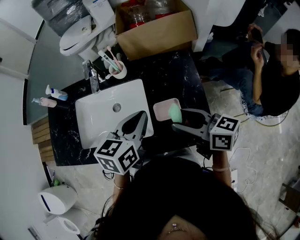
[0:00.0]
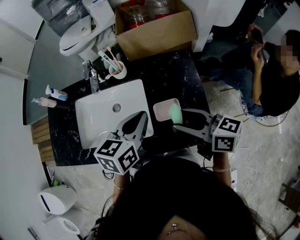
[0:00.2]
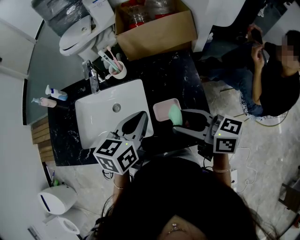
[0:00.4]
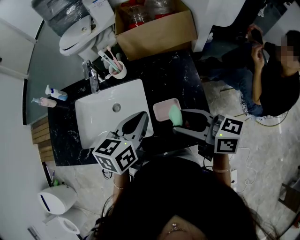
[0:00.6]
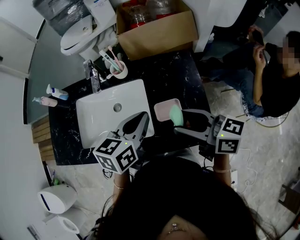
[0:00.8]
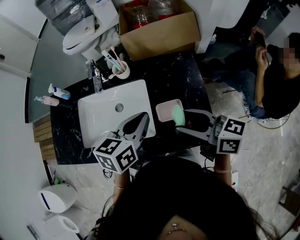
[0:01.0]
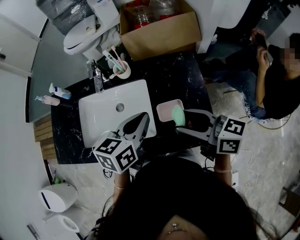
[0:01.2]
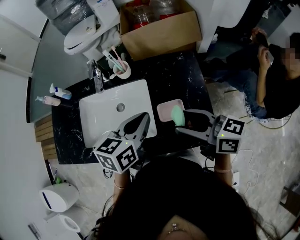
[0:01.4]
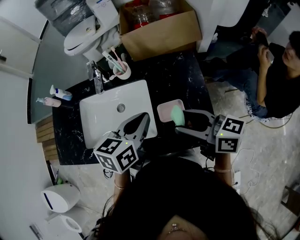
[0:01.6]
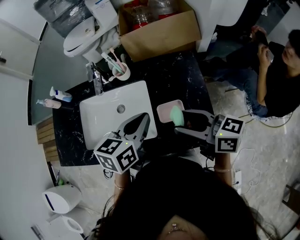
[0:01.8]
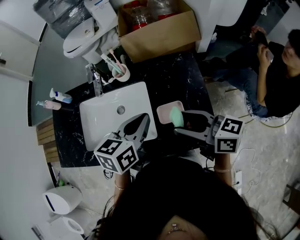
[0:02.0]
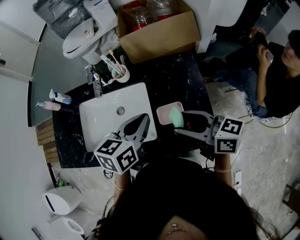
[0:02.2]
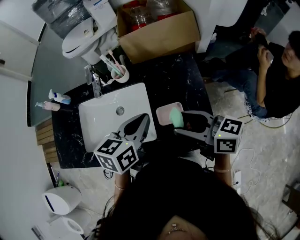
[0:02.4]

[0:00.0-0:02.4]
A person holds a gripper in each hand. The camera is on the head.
0:00.0 to 0:02.4: The grippers move only a little.

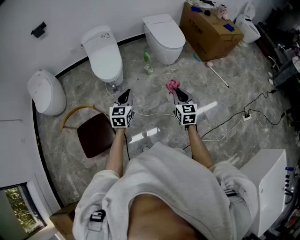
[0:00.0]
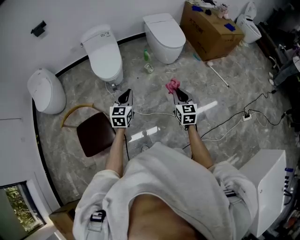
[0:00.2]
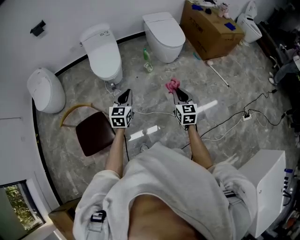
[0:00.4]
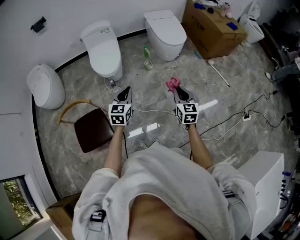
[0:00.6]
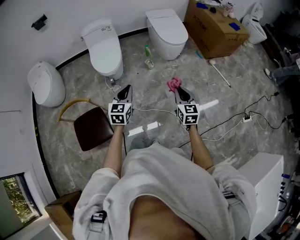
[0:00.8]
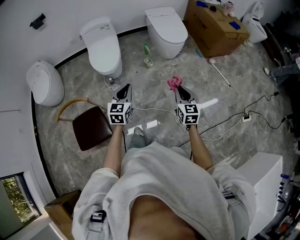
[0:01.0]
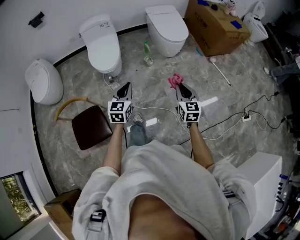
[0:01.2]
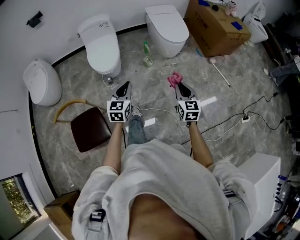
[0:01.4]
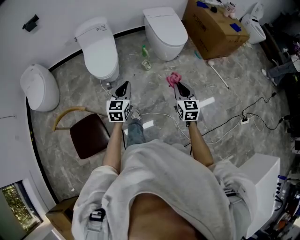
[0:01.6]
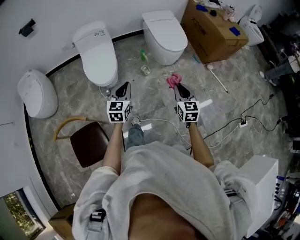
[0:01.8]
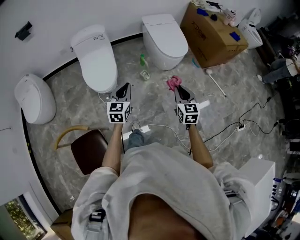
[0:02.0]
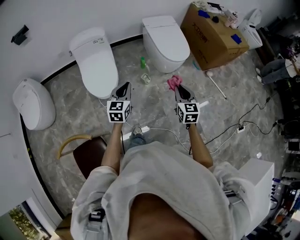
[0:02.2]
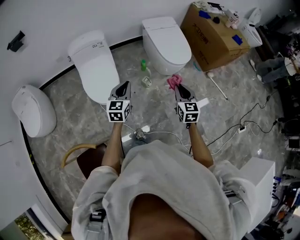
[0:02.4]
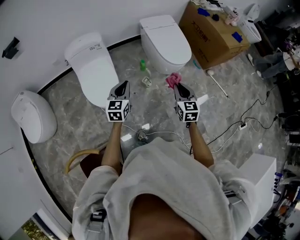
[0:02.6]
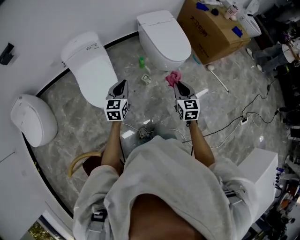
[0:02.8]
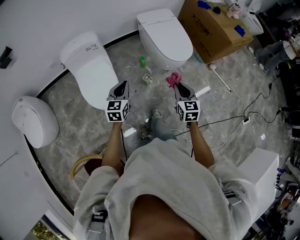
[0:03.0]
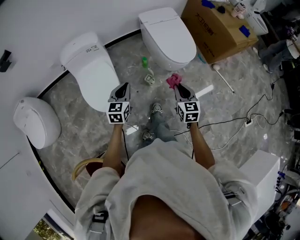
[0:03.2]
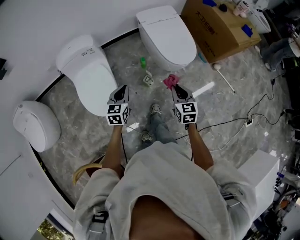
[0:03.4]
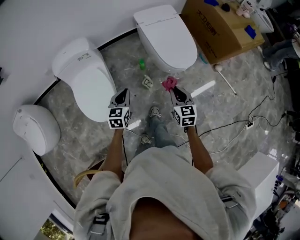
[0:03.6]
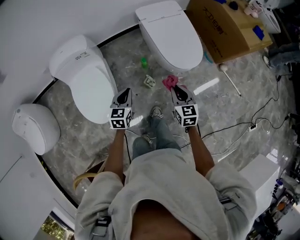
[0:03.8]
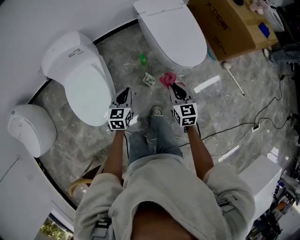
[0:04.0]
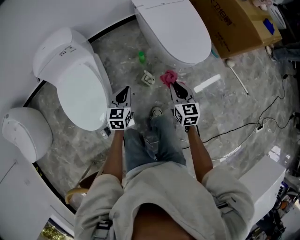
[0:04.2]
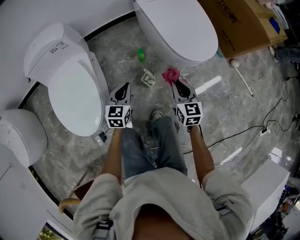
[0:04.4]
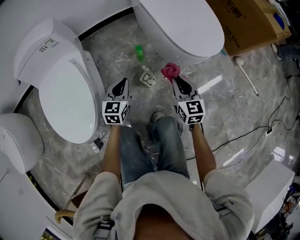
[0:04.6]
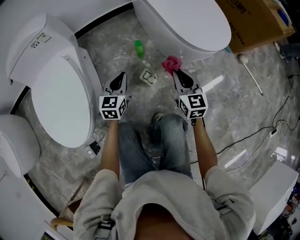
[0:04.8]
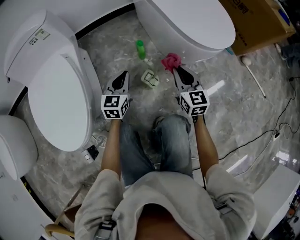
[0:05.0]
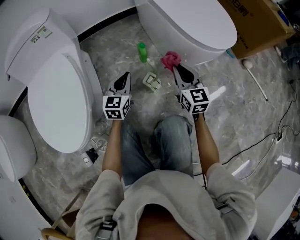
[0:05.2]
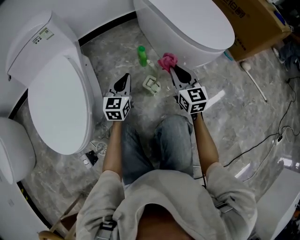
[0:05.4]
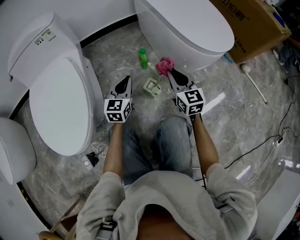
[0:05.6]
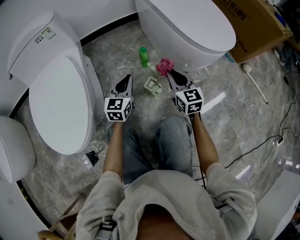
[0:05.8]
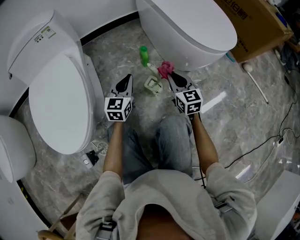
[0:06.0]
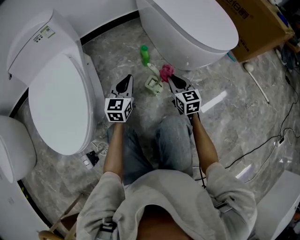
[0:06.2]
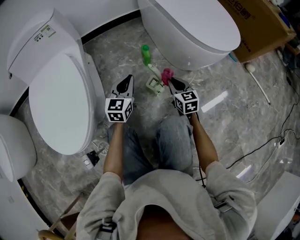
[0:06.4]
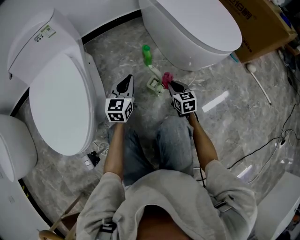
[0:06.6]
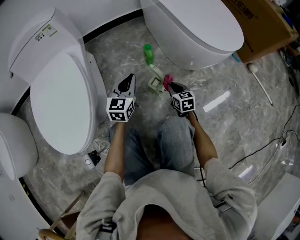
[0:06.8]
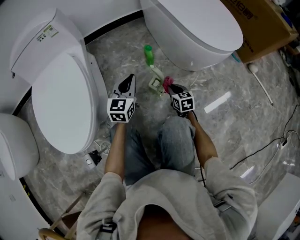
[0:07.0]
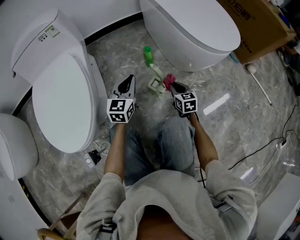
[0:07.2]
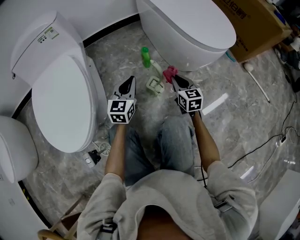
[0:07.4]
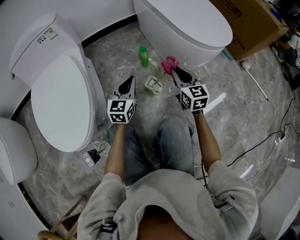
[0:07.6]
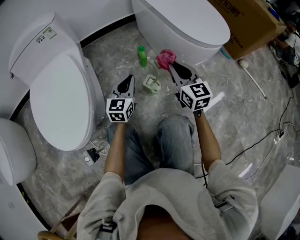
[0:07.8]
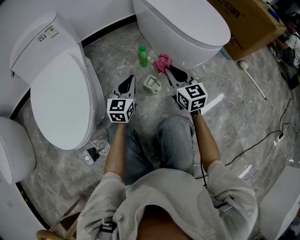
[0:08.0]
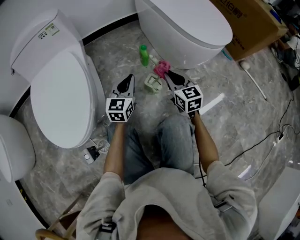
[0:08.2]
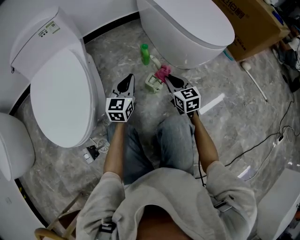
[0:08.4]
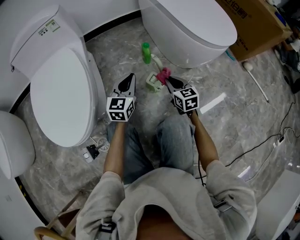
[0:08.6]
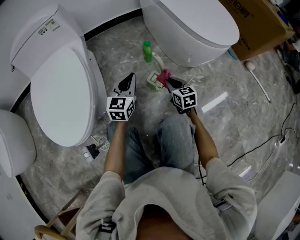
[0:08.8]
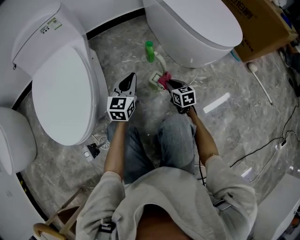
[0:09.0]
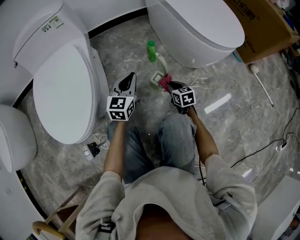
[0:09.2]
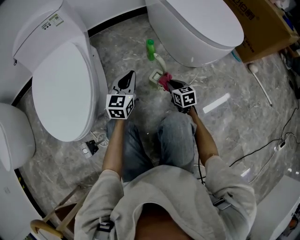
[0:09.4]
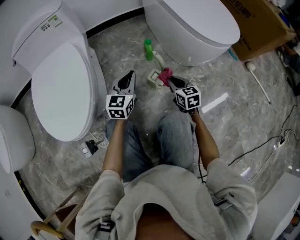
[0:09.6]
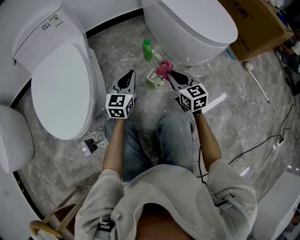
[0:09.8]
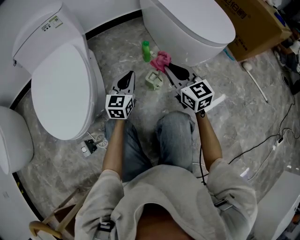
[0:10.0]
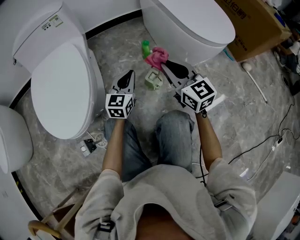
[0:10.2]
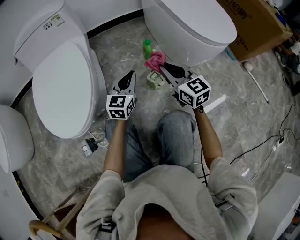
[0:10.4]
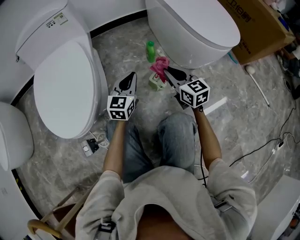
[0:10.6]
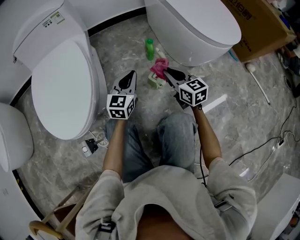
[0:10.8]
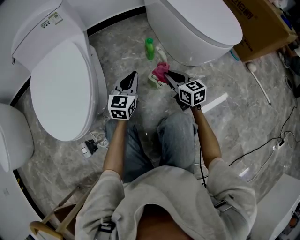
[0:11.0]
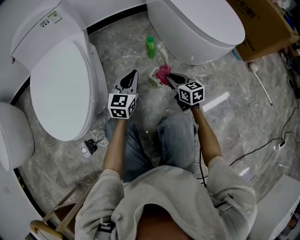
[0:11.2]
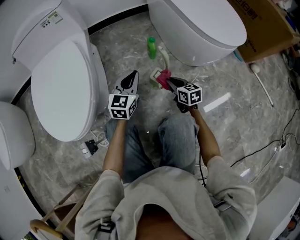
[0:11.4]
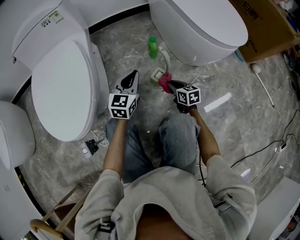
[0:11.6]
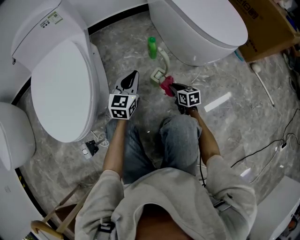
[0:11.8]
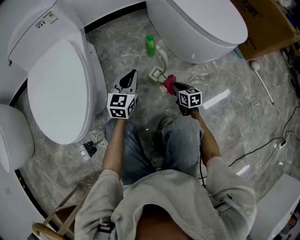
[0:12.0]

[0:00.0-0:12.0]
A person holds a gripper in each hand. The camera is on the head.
0:00.0 to 0:01.6: The grippers both shift forward by some 10 cm.
0:01.6 to 0:03.0: Both grippers travel together forward, approximately 25 cm.
0:03.0 to 0:04.4: Both grippers travel together downward and forward, about 35 cm.
0:04.4 to 0:06.0: Both grippers travel together downward, some 20 cm.
0:06.0 to 0:07.6: The right gripper moves about 15 cm downward and comes back.
0:07.6 to 0:09.0: The right gripper heads downward, covering about 20 cm, and rotates some 20 degrees.
0:09.0 to 0:10.4: The right gripper heads upward, covering about 20 cm, and rotates about 30 degrees.
0:10.4 to 0:12.0: The right gripper shifts about 25 cm downward, and swivels about 30 degrees.

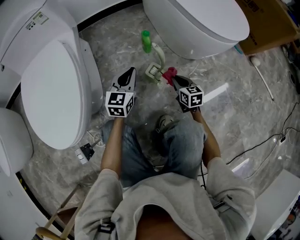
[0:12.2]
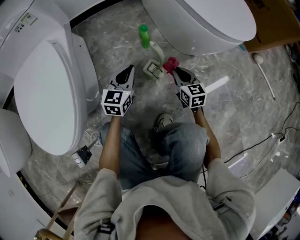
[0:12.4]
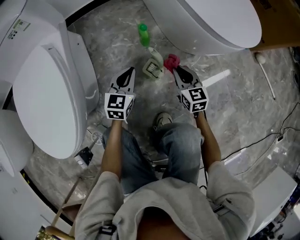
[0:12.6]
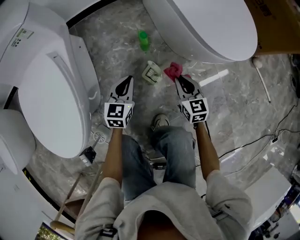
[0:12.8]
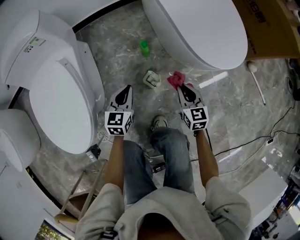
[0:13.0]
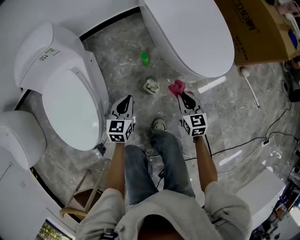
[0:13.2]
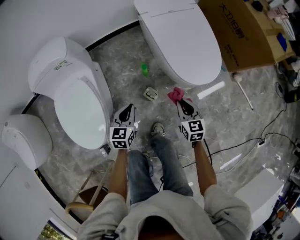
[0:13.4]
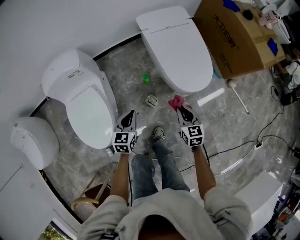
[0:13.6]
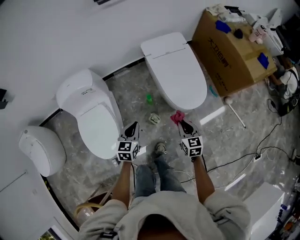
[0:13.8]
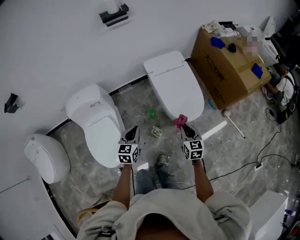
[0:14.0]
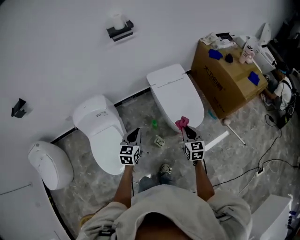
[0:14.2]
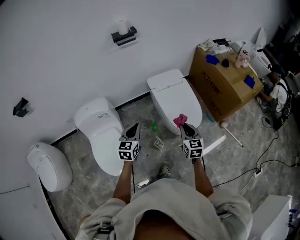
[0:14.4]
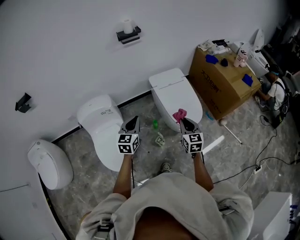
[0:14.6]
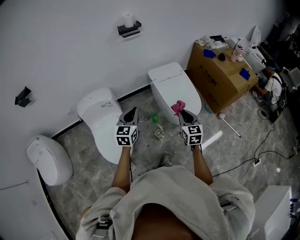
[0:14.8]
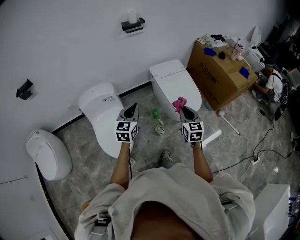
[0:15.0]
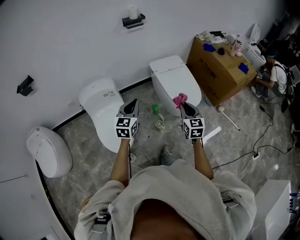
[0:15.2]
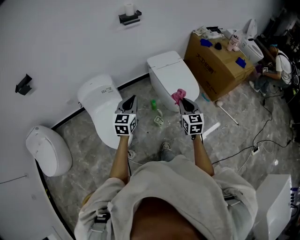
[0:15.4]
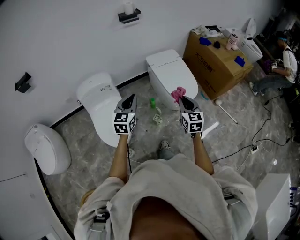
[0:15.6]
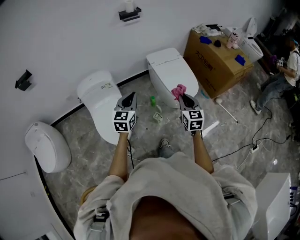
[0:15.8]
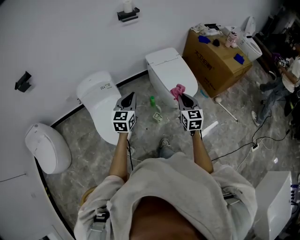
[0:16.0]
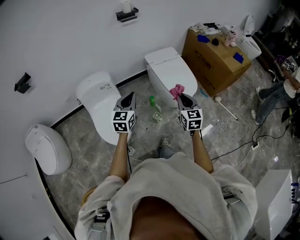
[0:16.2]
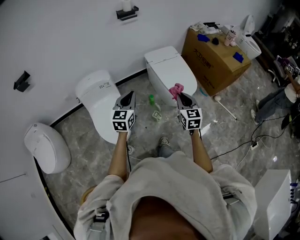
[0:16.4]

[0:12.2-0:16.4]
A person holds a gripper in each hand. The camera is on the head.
0:12.2 to 0:13.6: The two grippers go roughly 35 cm upward. The left gripper rotates roughly 20 degrees.
0:13.6 to 0:15.0: Both grippers move upward, roughly 30 cm. The left gripper turns by some 20 degrees.
0:15.0 to 0:16.4: The two grippers go some 5 cm backward.

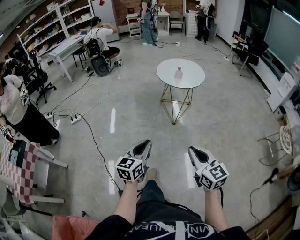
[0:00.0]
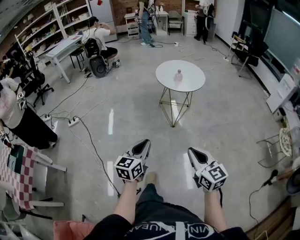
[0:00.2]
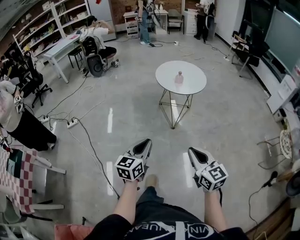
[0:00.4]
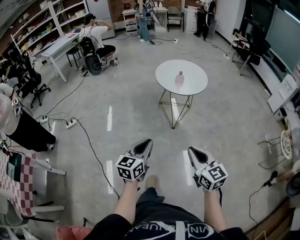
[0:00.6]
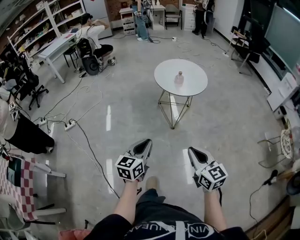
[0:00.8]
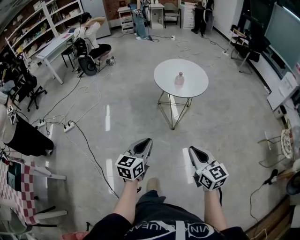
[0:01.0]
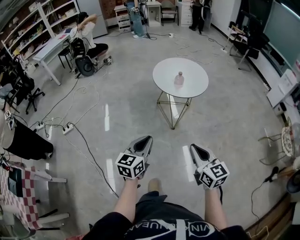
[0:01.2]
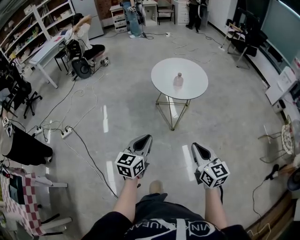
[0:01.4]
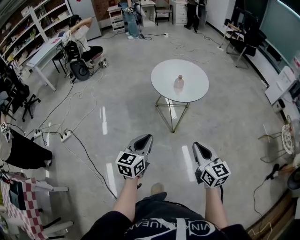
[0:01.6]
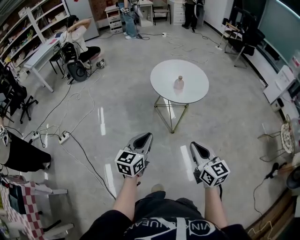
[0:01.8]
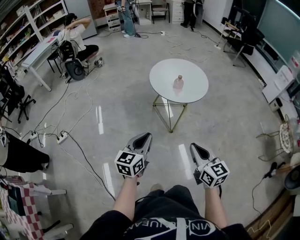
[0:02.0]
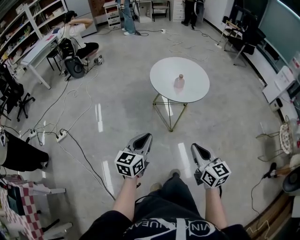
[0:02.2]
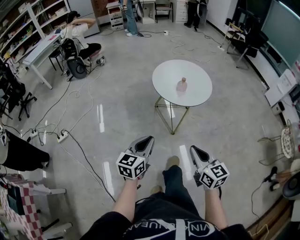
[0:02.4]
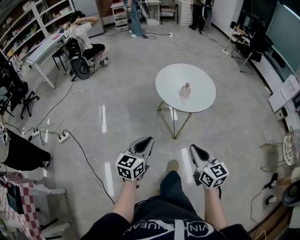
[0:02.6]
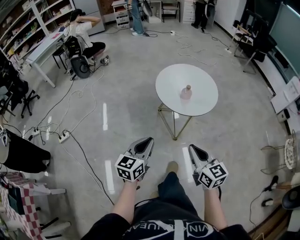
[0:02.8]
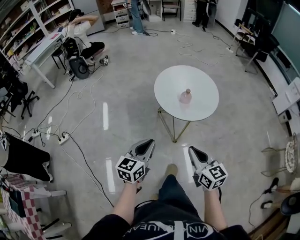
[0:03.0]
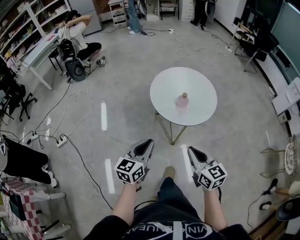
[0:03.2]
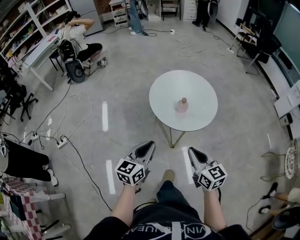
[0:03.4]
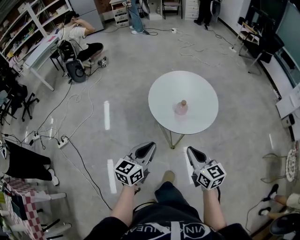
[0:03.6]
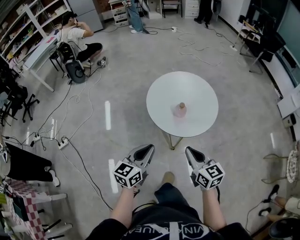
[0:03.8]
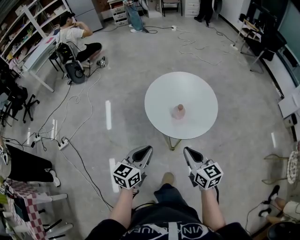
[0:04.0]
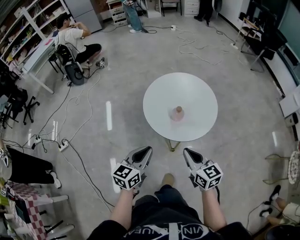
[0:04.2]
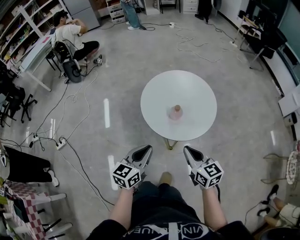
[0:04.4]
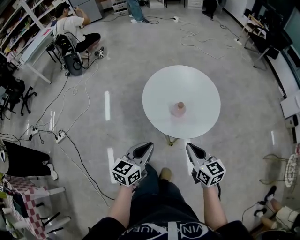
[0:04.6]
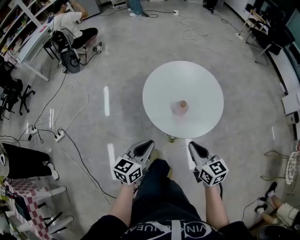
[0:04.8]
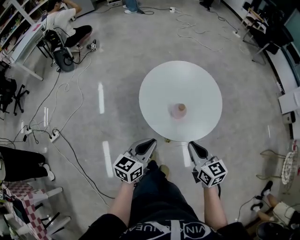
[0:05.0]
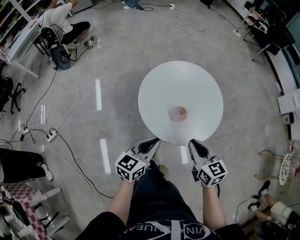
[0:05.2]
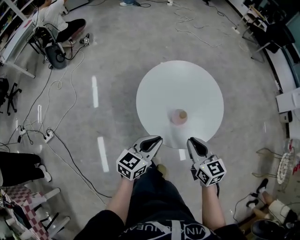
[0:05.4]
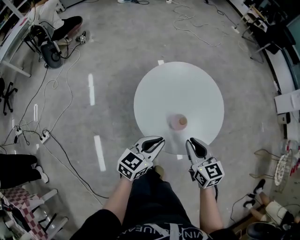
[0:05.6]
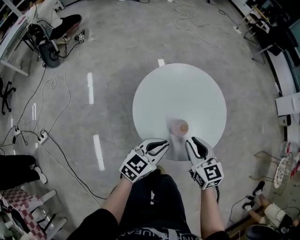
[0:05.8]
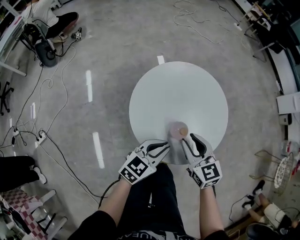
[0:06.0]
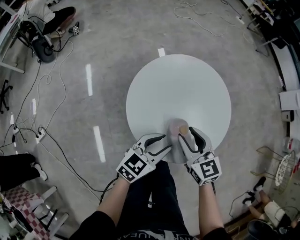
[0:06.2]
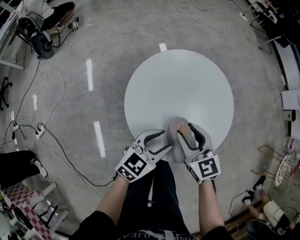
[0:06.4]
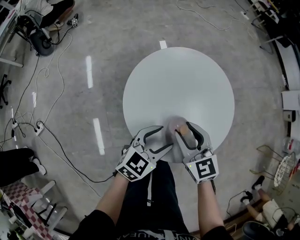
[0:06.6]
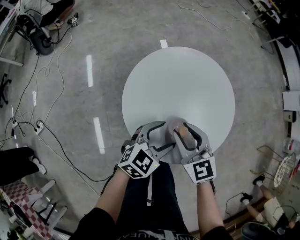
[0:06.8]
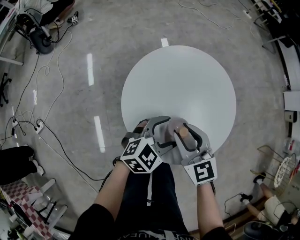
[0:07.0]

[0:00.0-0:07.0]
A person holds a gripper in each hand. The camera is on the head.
0:00.0 to 0:01.4: The grippers both shift forward by roughly 25 cm.
0:01.4 to 0:02.8: The grippers both shift forward by about 15 cm.
0:02.8 to 0:04.2: Both grippers move forward and to the right, approximately 20 cm.
0:04.2 to 0:05.6: Both grippers travel together forward and downward, about 15 cm.
0:05.6 to 0:07.0: The left gripper shifts approximately 15 cm forward, downward and to the right, swivels about 30 degrees, and opens its fingers. Meanwhile the right gripper is displaced forward and to the left by roughly 10 cm, and opens up.